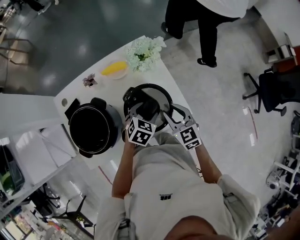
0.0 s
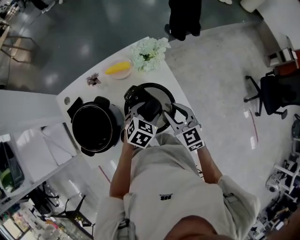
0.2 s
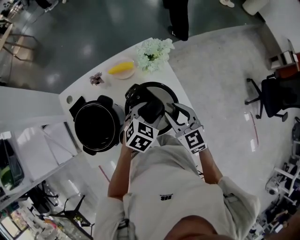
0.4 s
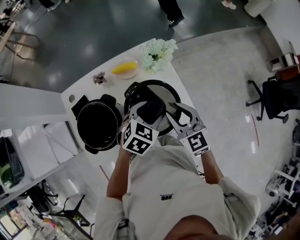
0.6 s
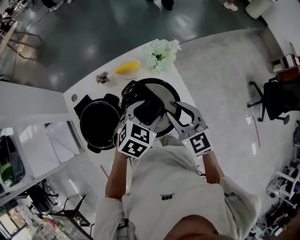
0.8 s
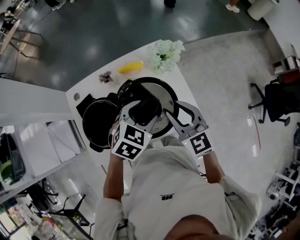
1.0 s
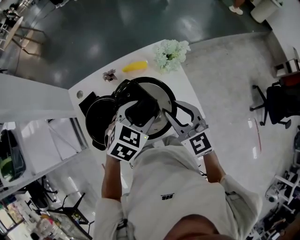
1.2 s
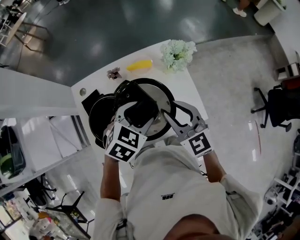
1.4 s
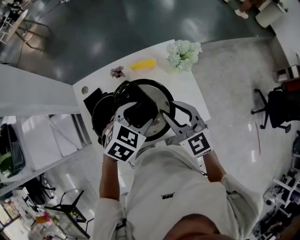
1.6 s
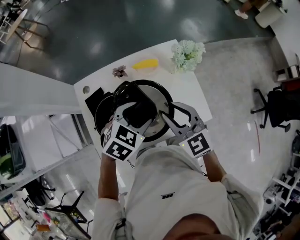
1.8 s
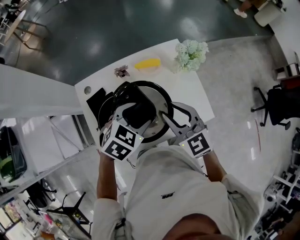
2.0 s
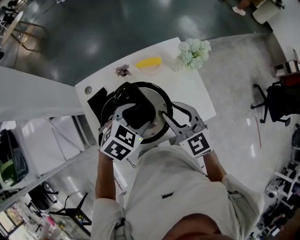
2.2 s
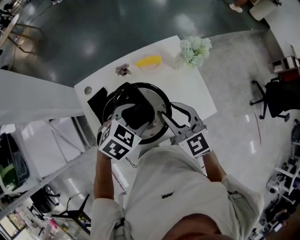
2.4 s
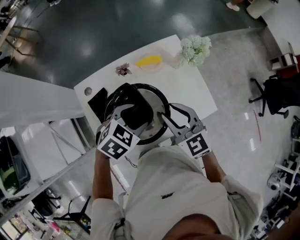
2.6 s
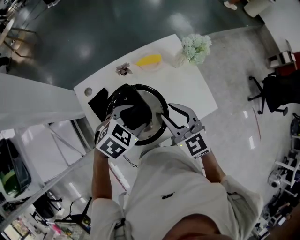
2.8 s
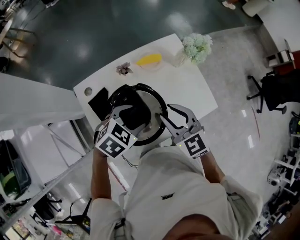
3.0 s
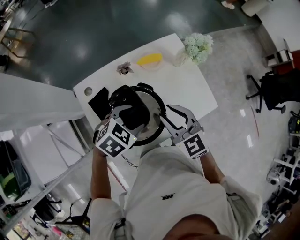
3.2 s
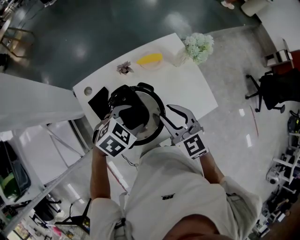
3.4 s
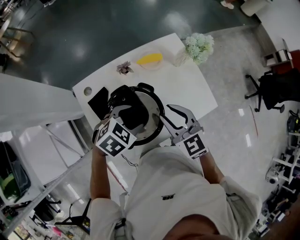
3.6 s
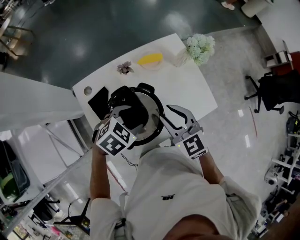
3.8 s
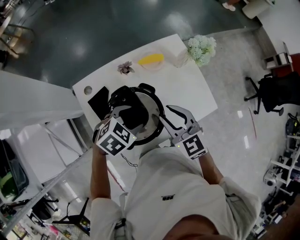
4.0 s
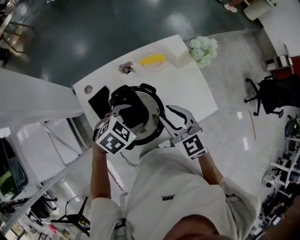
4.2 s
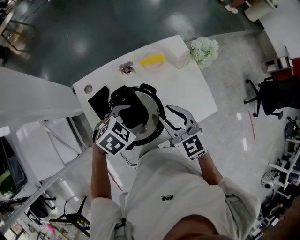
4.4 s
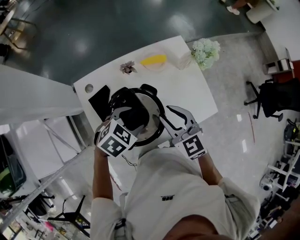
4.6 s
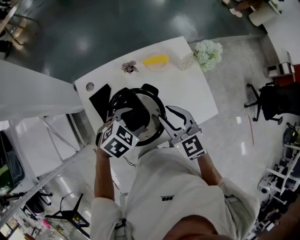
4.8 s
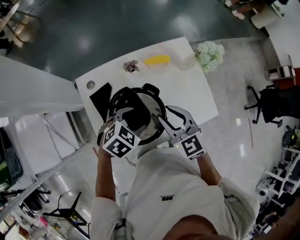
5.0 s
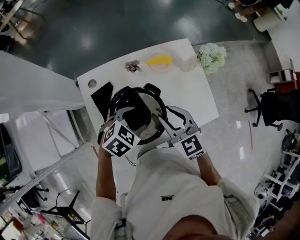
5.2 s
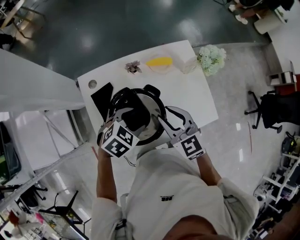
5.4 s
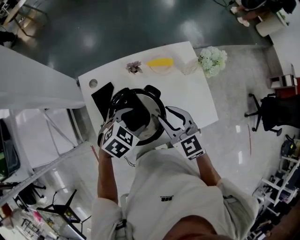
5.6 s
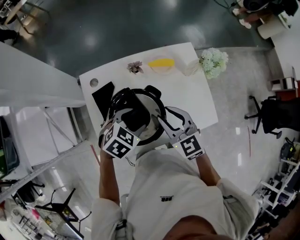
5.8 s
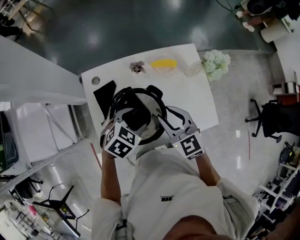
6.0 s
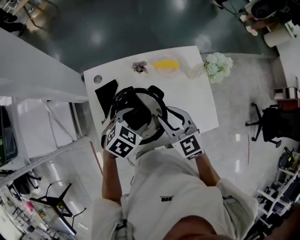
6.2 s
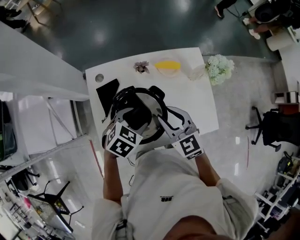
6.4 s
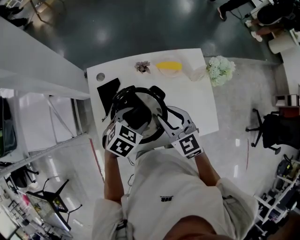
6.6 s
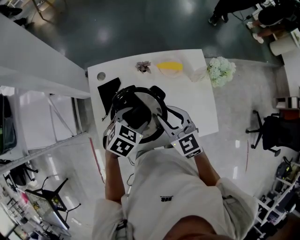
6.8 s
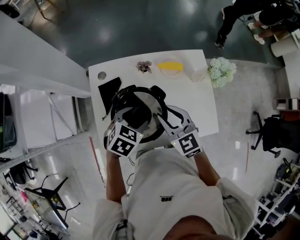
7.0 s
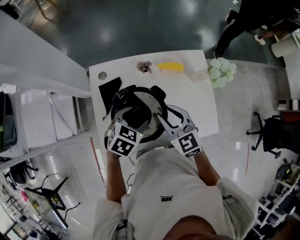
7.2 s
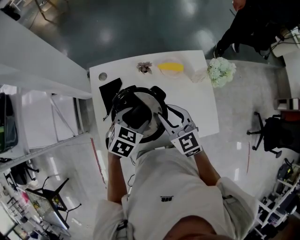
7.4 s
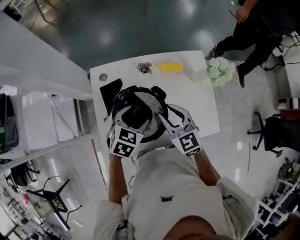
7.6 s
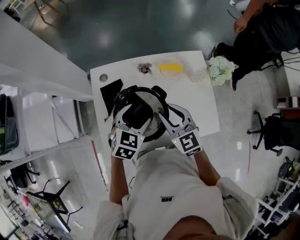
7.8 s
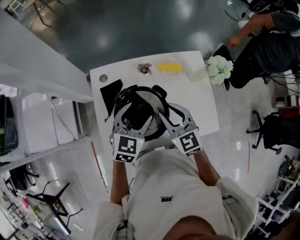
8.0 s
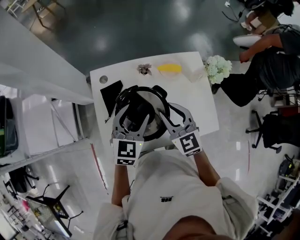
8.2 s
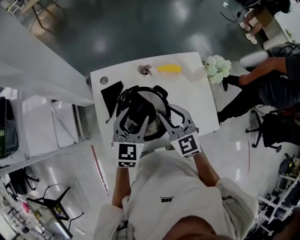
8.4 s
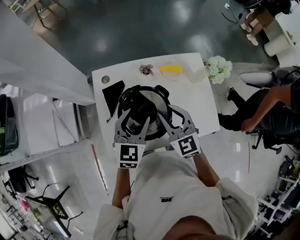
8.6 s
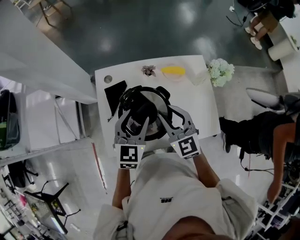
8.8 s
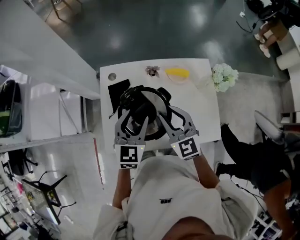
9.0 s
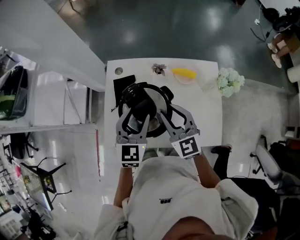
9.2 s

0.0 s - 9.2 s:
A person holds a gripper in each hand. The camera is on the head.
0.0 s - 1.6 s: The right gripper is displaced to the left and upward by some 20 cm, and turns by about 20 degrees; the left gripper travels upward and to the left by roughly 20 cm.
1.6 s - 3.0 s: Both grippers move to the left, some 10 cm.
3.0 s - 4.6 s: The grippers move only a little.
4.6 s - 6.2 s: The grippers make only small movements.
6.2 s - 7.6 s: The grippers stay close to where they were, moving slightly.
7.6 s - 9.2 s: The left gripper shifts some 10 cm upward, and rotates some 40 degrees.

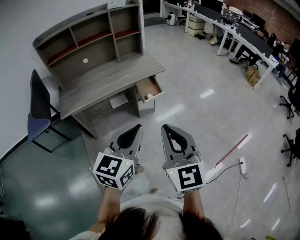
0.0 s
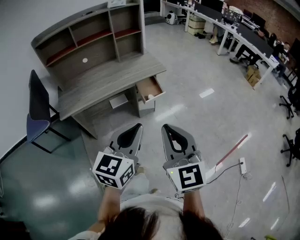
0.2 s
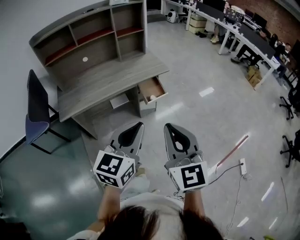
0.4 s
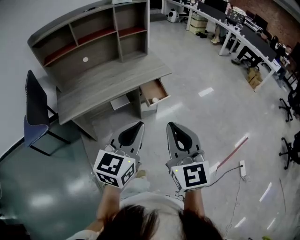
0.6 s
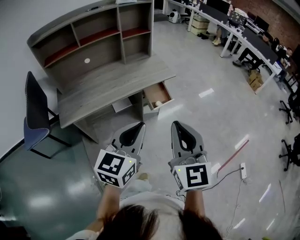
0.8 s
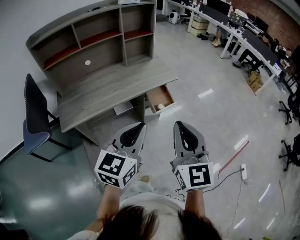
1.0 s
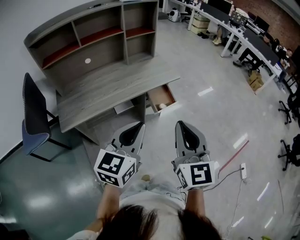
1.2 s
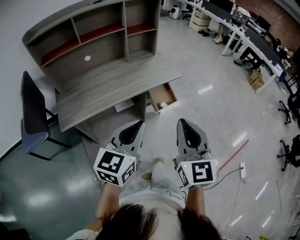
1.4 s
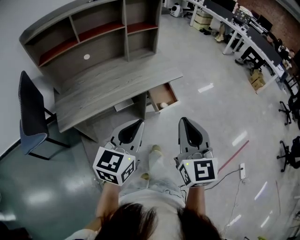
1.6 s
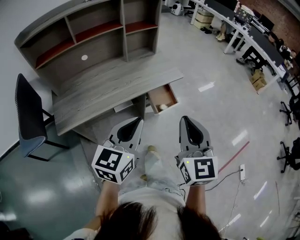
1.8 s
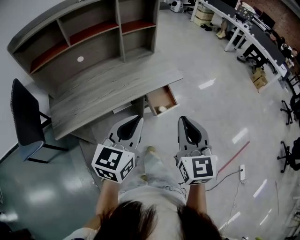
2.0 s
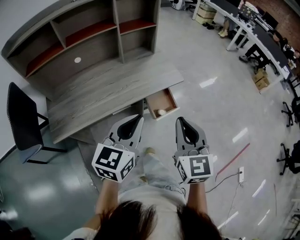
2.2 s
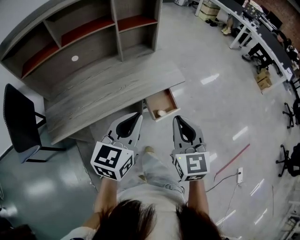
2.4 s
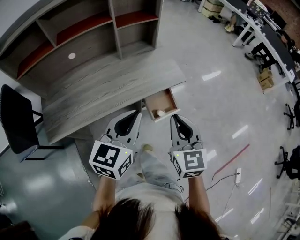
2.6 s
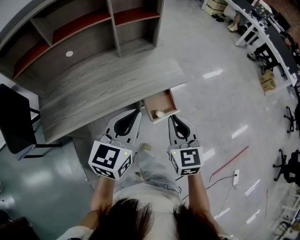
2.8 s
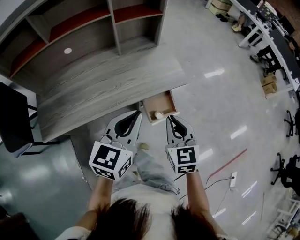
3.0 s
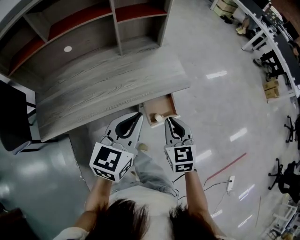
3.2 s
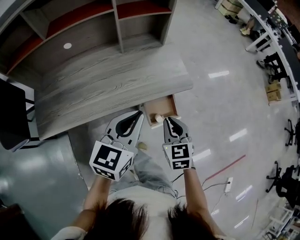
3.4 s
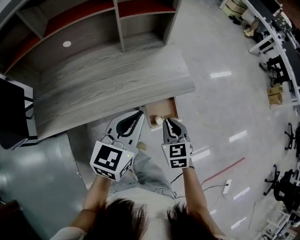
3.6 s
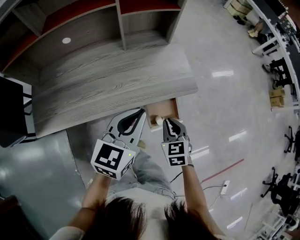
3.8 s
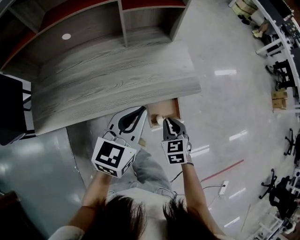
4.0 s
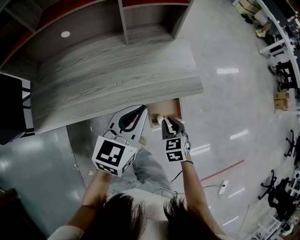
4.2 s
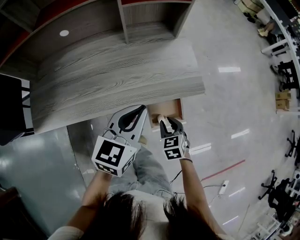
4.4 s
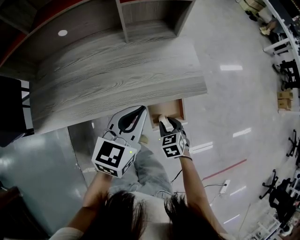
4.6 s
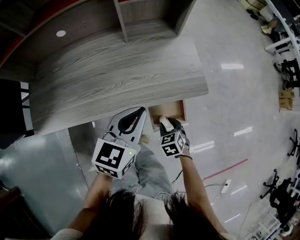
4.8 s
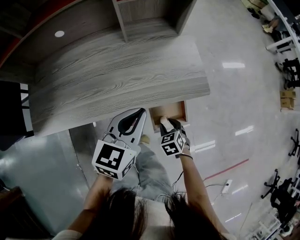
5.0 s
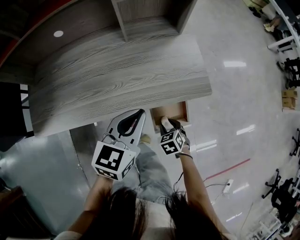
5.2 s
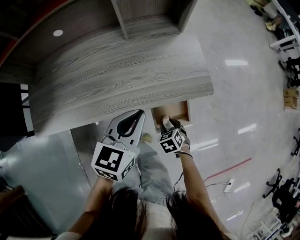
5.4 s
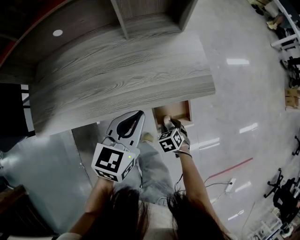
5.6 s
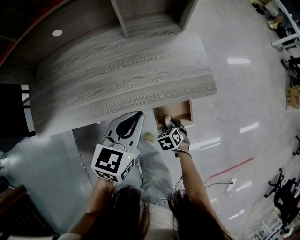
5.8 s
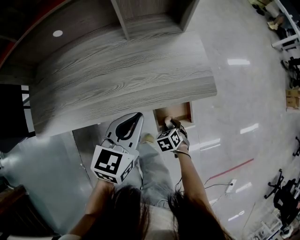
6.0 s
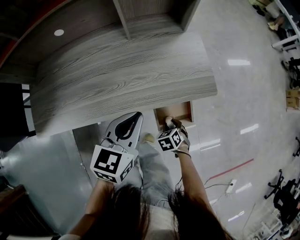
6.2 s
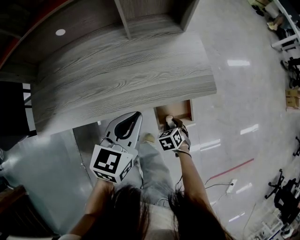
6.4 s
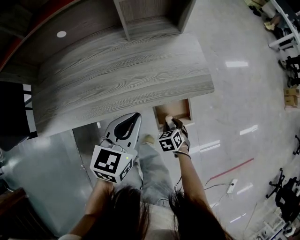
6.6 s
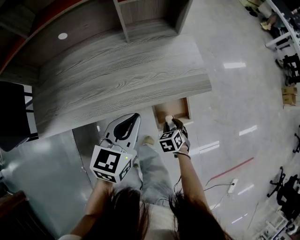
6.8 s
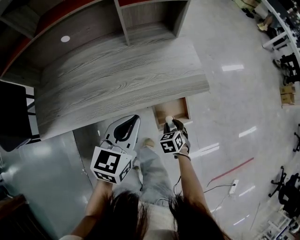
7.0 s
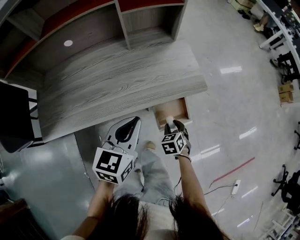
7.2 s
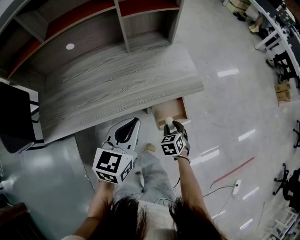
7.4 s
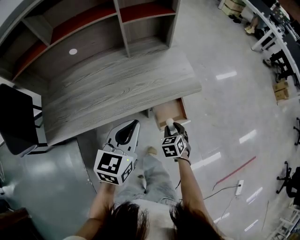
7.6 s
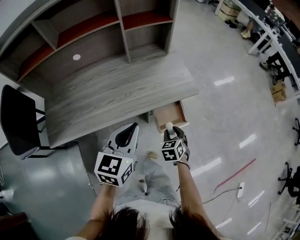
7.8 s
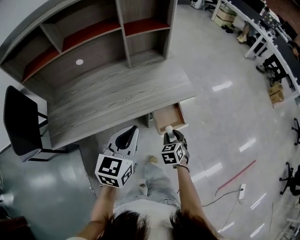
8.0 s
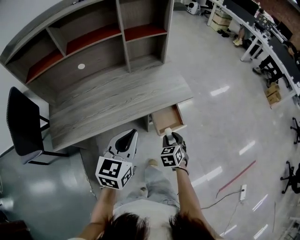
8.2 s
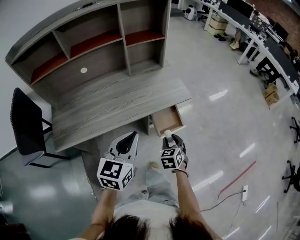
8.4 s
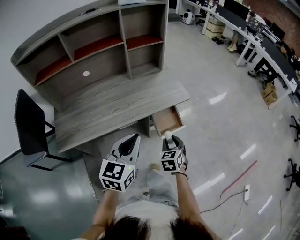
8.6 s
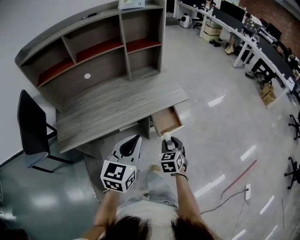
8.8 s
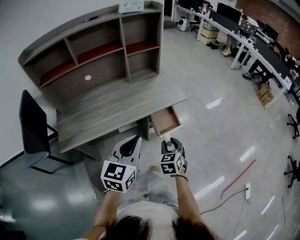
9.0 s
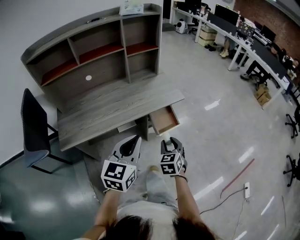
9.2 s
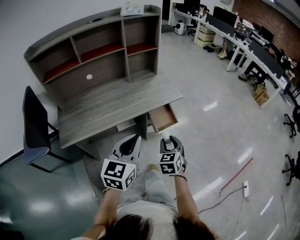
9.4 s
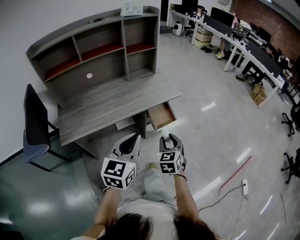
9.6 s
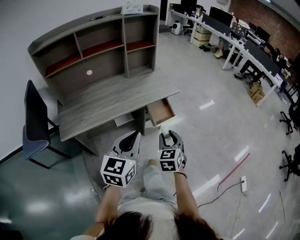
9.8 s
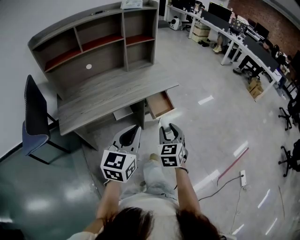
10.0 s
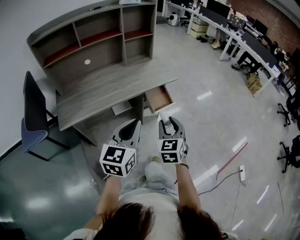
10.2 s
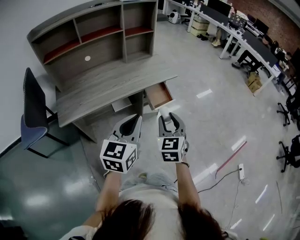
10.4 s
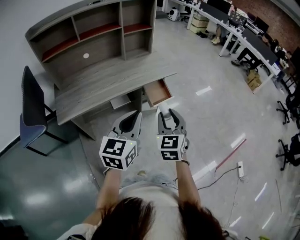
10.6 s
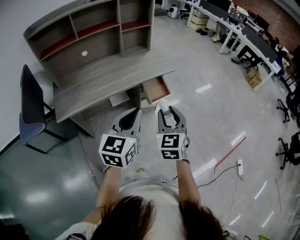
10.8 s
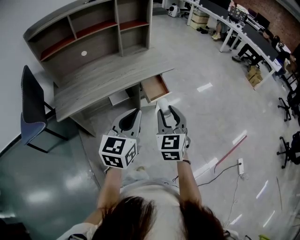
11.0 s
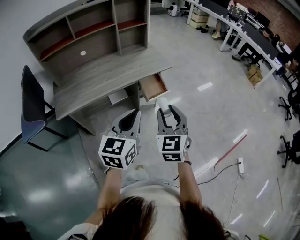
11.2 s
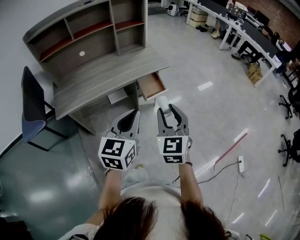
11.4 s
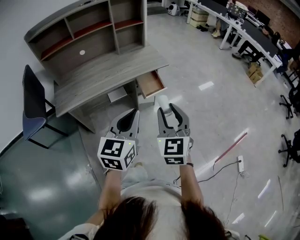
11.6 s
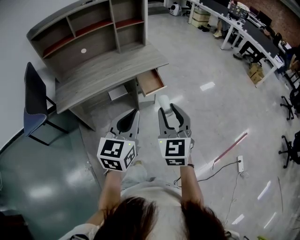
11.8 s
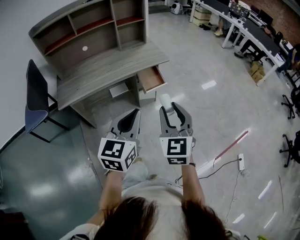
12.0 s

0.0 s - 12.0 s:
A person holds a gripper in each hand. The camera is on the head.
0.0 s - 1.6 s: The two grippers go approximately 25 cm forward and to the left.
1.6 s - 3.0 s: The right gripper moves forward and downward, approximately 35 cm, and swivels roughly 20 degrees, while the left gripper is displaced forward by about 25 cm.
3.0 s - 4.4 s: The left gripper goes about 15 cm forward and downward, while the right gripper moves downward, approximately 25 cm, and swivels about 30 degrees.
4.4 s - 6.0 s: The left gripper shifts some 5 cm downward, while the right gripper moves downward, some 15 cm, and rotates about 20 degrees.
6.0 s - 7.6 s: The right gripper is displaced upward by approximately 15 cm, and changes its angle by some 20 degrees, while the left gripper travels backward and upward by roughly 10 cm.
7.6 s - 9.0 s: The right gripper moves upward and backward, some 20 cm, while the left gripper goes roughly 20 cm backward and upward.
9.0 s - 10.4 s: The right gripper heads backward and upward, covering roughly 20 cm, while the left gripper shifts some 15 cm backward.
10.4 s - 12.0 s: The left gripper moves to the right and backward, about 15 cm. Meanwhile the right gripper goes approximately 15 cm to the right, backward and upward.

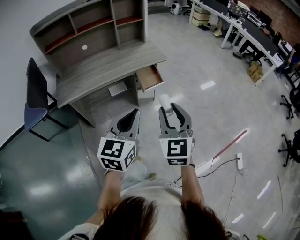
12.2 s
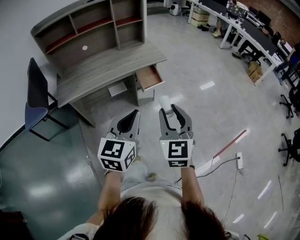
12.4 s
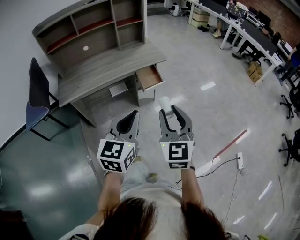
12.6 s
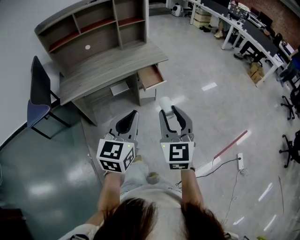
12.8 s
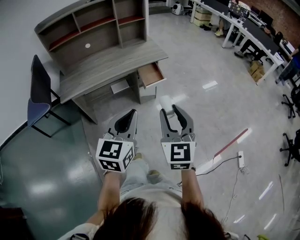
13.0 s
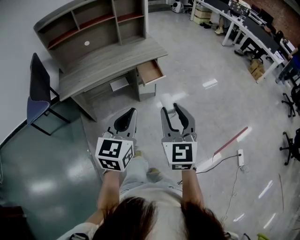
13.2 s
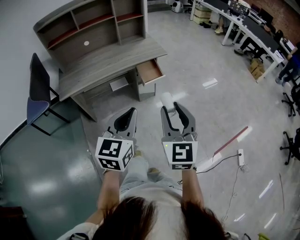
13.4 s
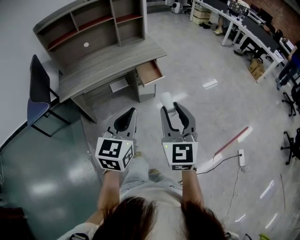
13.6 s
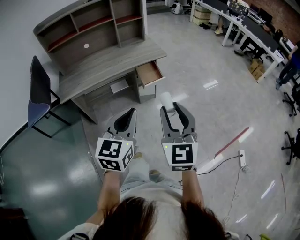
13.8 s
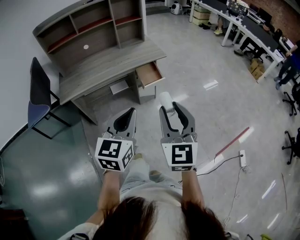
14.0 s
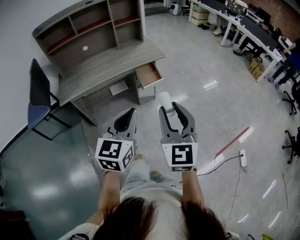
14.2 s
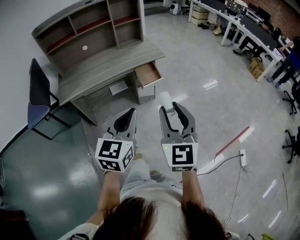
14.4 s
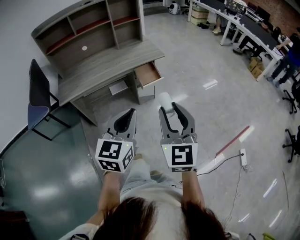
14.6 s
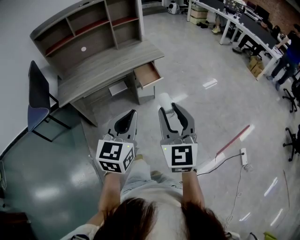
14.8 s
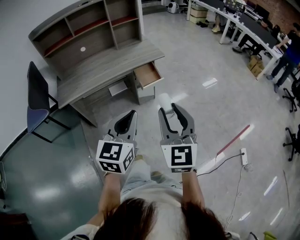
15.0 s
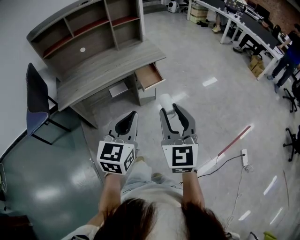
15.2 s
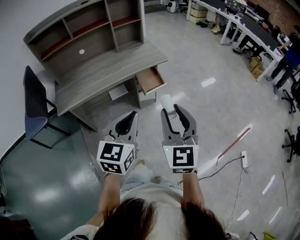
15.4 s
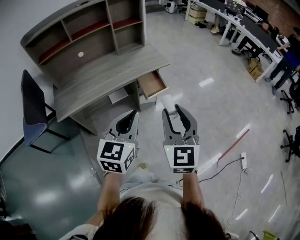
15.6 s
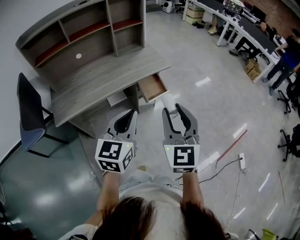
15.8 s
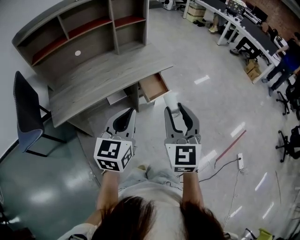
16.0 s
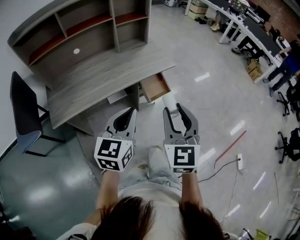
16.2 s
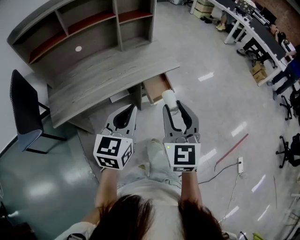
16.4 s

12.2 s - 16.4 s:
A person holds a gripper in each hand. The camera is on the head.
12.2 s - 13.6 s: The grippers both shift backward by about 5 cm.
13.6 s - 15.0 s: The grippers make only small movements.
15.0 s - 16.4 s: The grippers both shift forward and to the left by roughly 30 cm.
